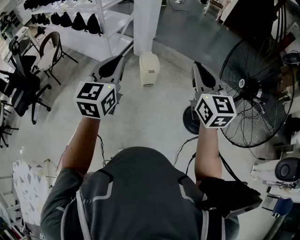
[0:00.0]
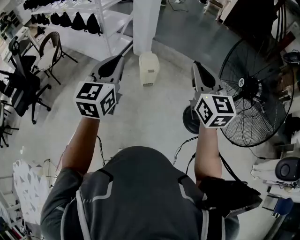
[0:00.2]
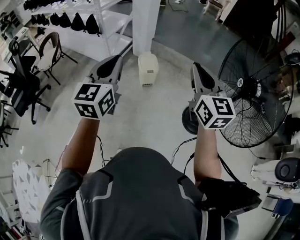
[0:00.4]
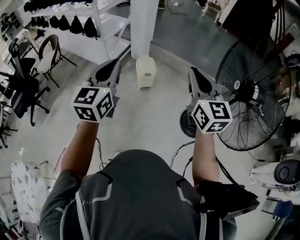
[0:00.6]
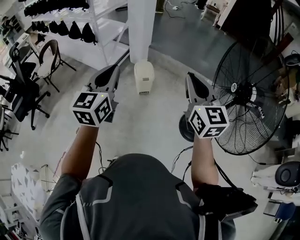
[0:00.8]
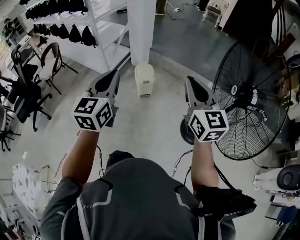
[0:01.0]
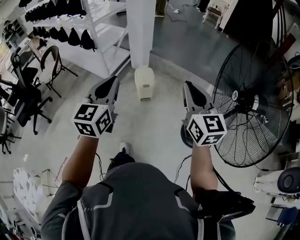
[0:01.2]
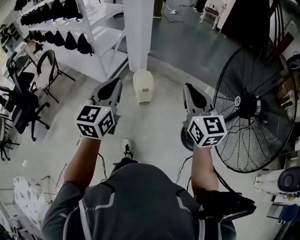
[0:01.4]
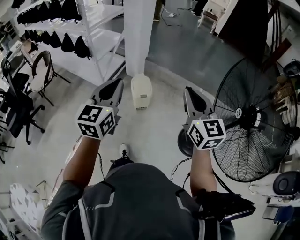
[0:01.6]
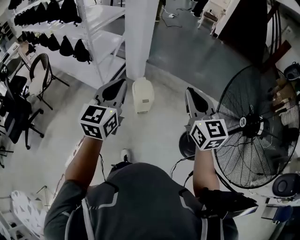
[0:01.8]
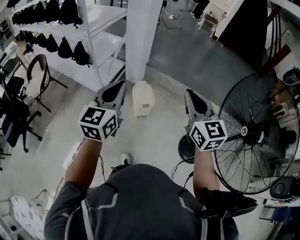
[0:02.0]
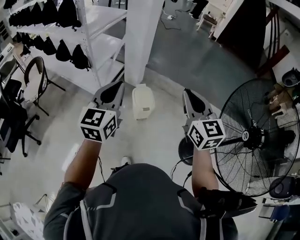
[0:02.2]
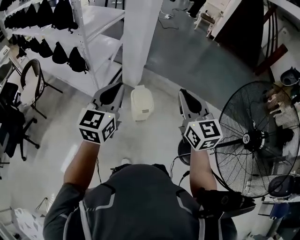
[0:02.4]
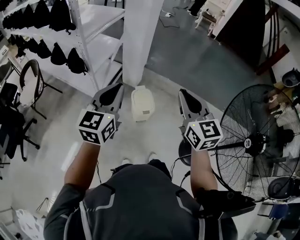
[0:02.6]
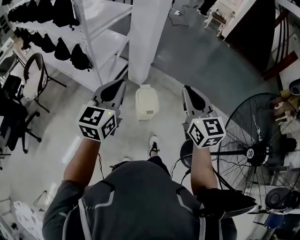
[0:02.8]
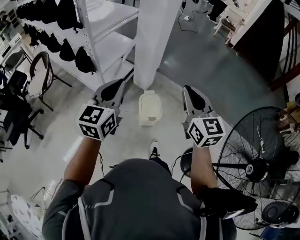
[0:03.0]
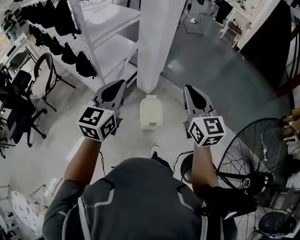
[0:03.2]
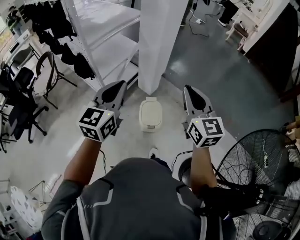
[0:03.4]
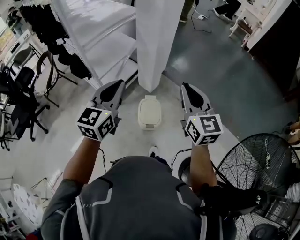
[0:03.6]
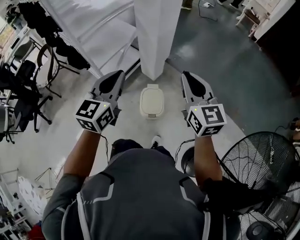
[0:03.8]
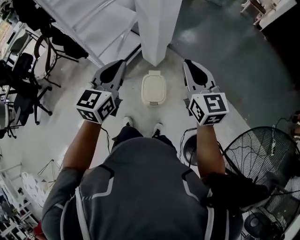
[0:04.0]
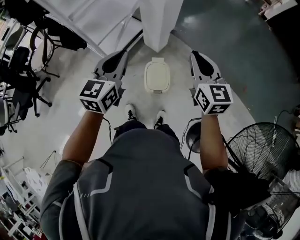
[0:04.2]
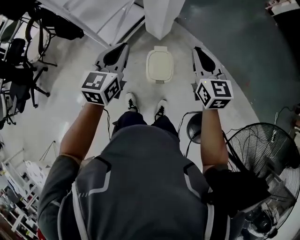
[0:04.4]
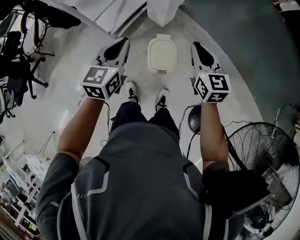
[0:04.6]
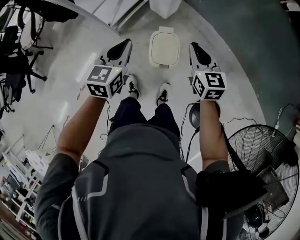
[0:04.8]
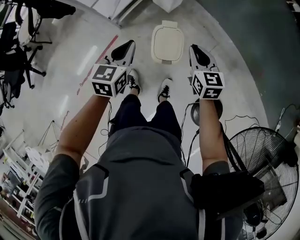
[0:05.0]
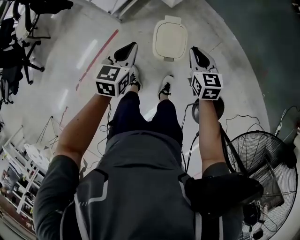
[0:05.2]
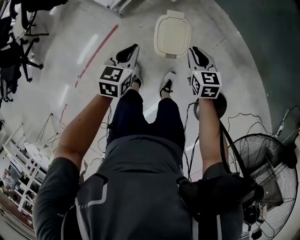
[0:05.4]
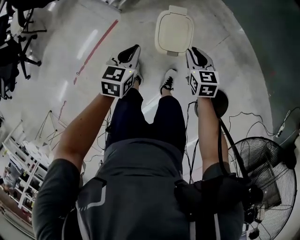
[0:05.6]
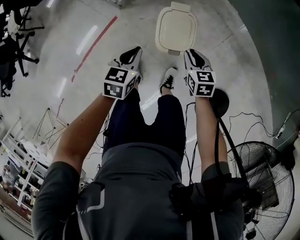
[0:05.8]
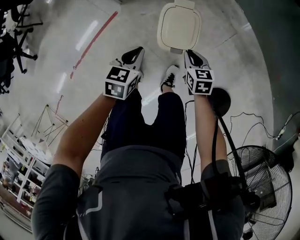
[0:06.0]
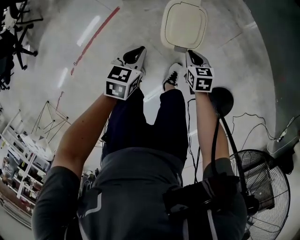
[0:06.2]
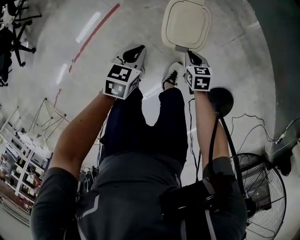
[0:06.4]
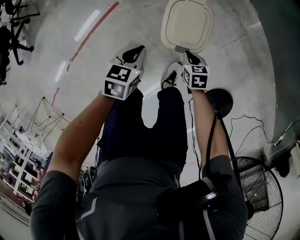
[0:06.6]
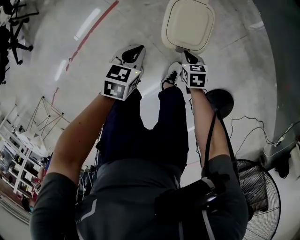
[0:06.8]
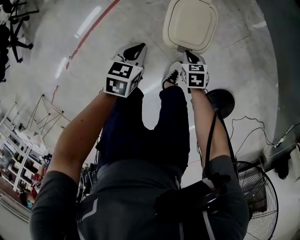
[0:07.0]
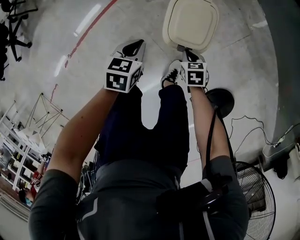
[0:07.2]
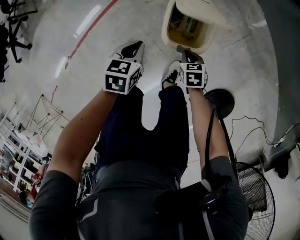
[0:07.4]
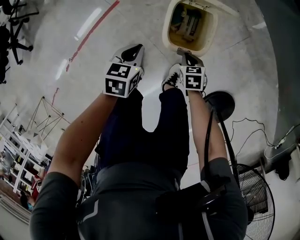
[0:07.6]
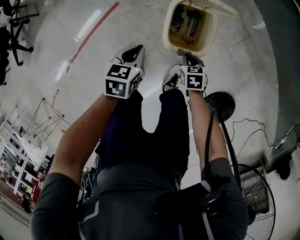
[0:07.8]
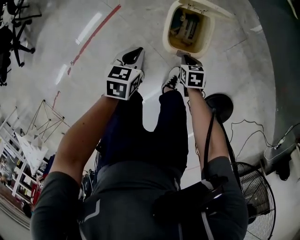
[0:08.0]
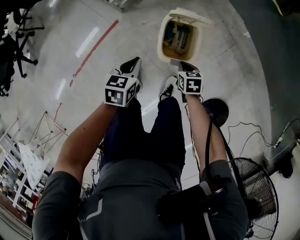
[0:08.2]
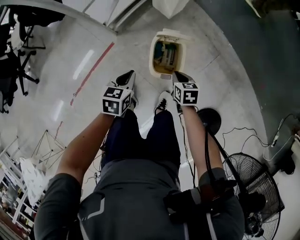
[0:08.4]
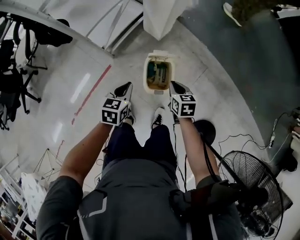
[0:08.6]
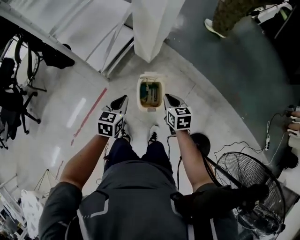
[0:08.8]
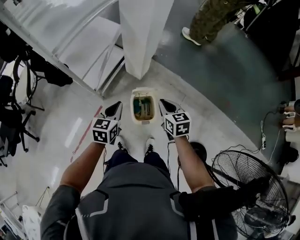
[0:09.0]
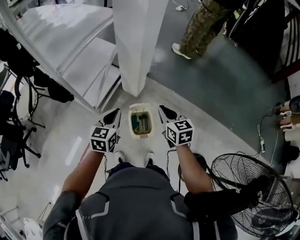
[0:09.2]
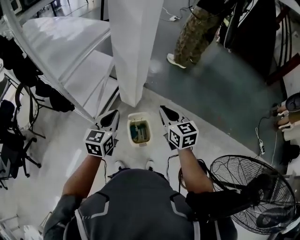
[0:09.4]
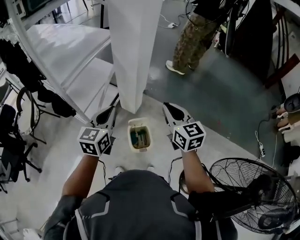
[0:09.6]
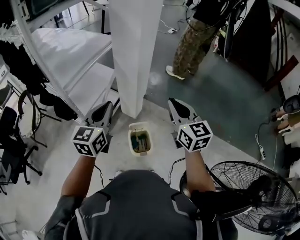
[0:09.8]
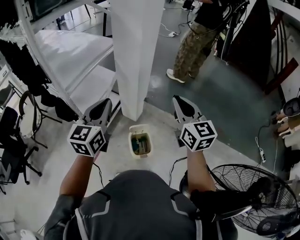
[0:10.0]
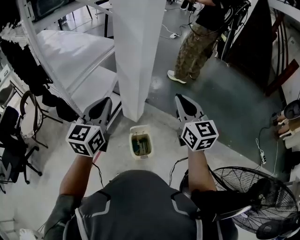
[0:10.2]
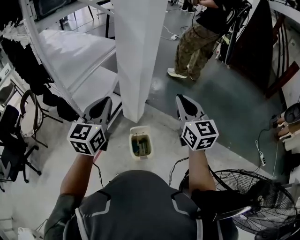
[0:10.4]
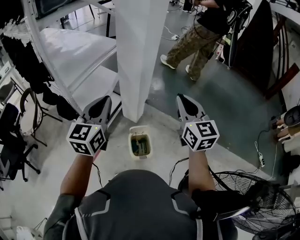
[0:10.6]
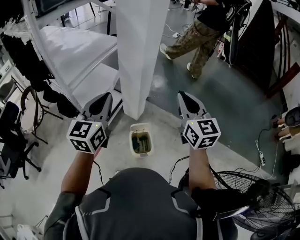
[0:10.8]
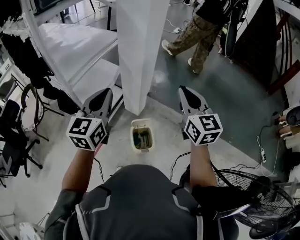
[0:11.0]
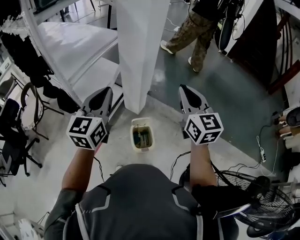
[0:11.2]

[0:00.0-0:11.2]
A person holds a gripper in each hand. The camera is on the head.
0:00.0 to 0:01.6: Both grippers move forward, roughly 15 cm.
0:01.6 to 0:03.2: The grippers both shift forward by some 35 cm.
0:03.2 to 0:04.8: Both grippers move downward and forward, about 35 cm. The right gripper turns by about 30 degrees; the left gripper turns by approximately 30 degrees.
0:04.8 to 0:06.4: Both grippers travel together downward, roughly 35 cm. The left gripper turns by approximately 30 degrees; the right gripper tilts its fingers approximately 30 degrees downward.
0:06.4 to 0:08.0: The right gripper shifts roughly 5 cm downward.
0:08.0 to 0:09.6: Both grippers travel together upward, some 60 cm. The left gripper tilts its fingers some 40 degrees upward; the right gripper tips its fingers upward by some 50 degrees.
0:09.6 to 0:11.2: Both grippers travel together upward, approximately 10 cm.

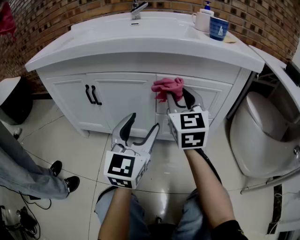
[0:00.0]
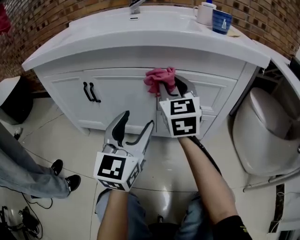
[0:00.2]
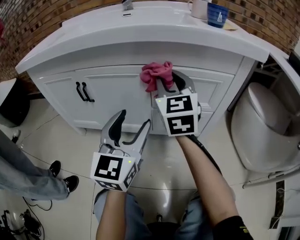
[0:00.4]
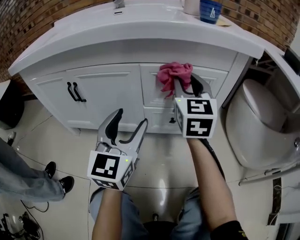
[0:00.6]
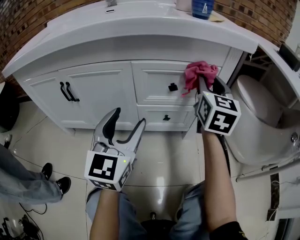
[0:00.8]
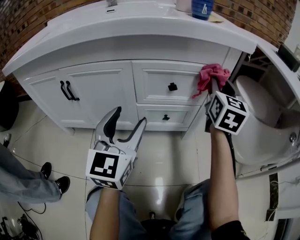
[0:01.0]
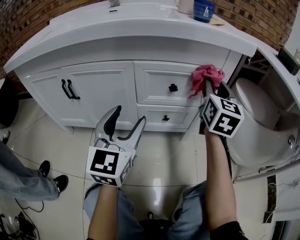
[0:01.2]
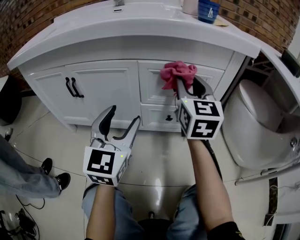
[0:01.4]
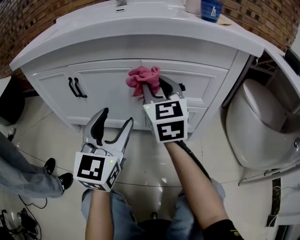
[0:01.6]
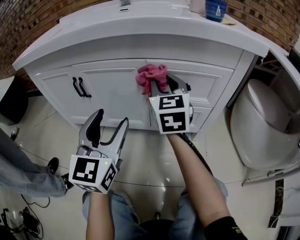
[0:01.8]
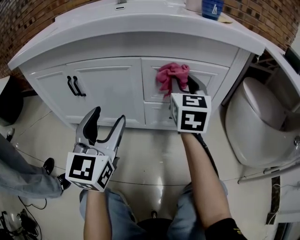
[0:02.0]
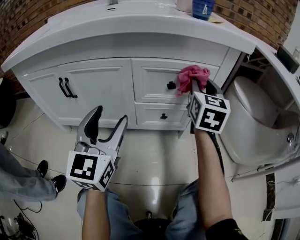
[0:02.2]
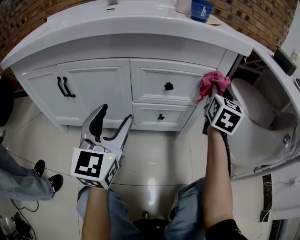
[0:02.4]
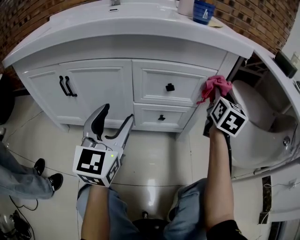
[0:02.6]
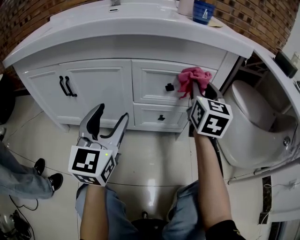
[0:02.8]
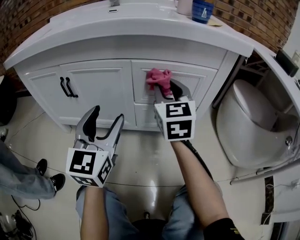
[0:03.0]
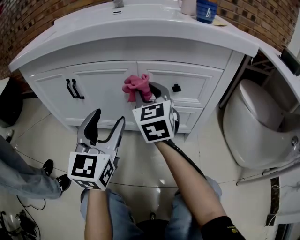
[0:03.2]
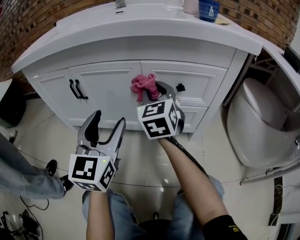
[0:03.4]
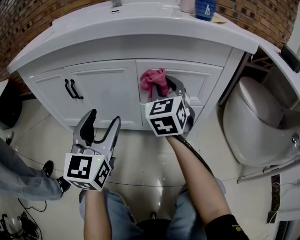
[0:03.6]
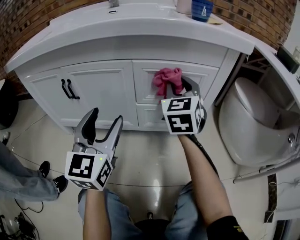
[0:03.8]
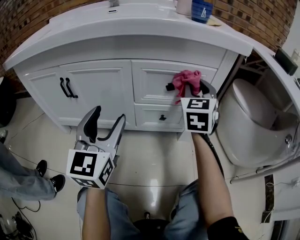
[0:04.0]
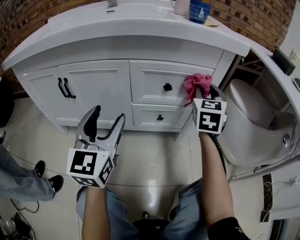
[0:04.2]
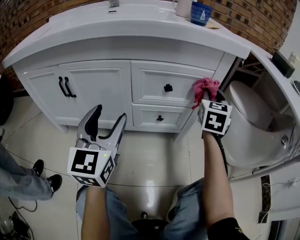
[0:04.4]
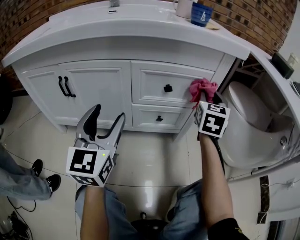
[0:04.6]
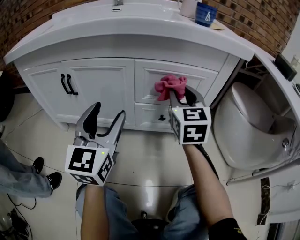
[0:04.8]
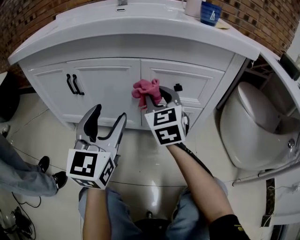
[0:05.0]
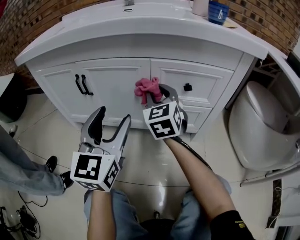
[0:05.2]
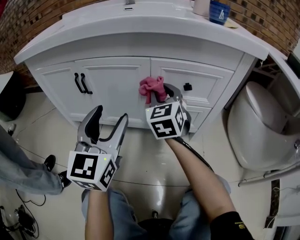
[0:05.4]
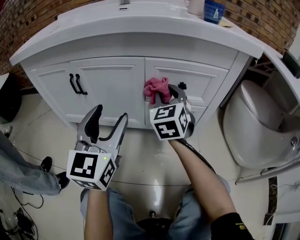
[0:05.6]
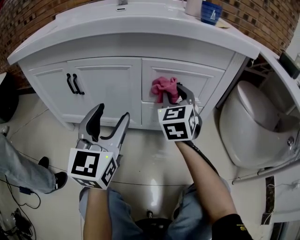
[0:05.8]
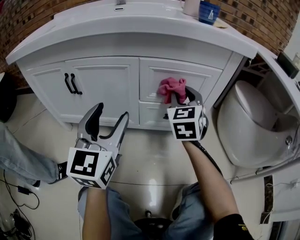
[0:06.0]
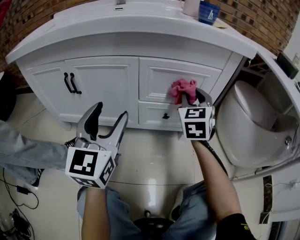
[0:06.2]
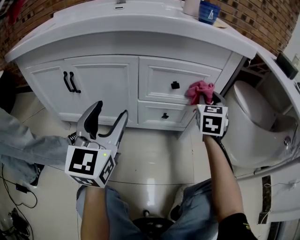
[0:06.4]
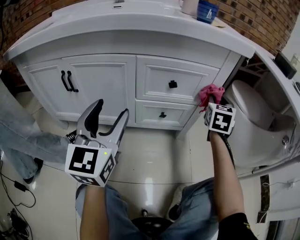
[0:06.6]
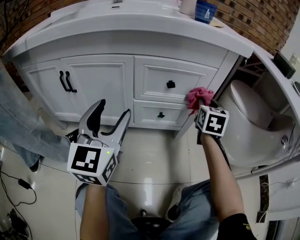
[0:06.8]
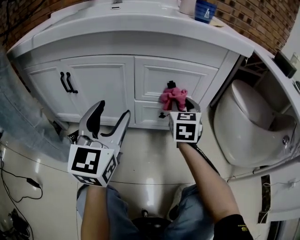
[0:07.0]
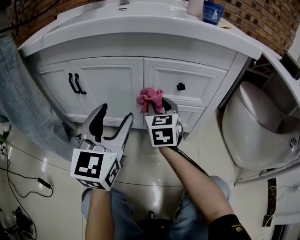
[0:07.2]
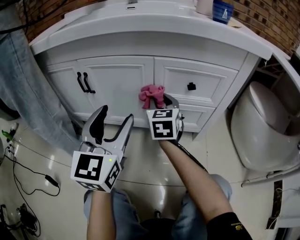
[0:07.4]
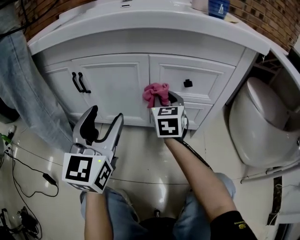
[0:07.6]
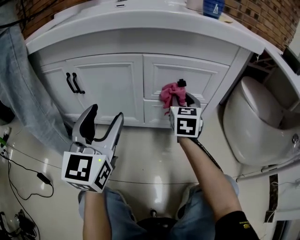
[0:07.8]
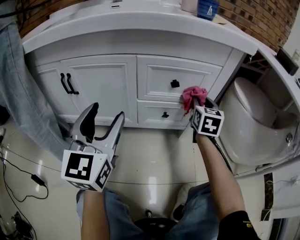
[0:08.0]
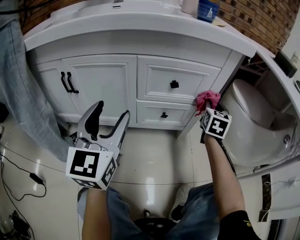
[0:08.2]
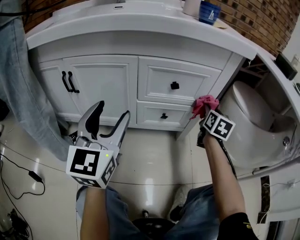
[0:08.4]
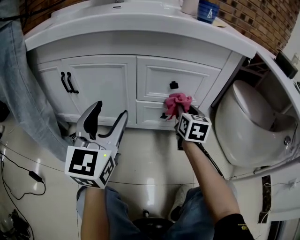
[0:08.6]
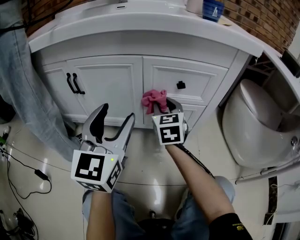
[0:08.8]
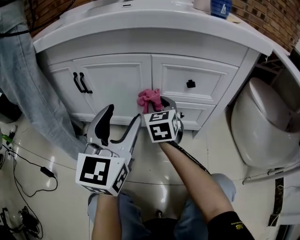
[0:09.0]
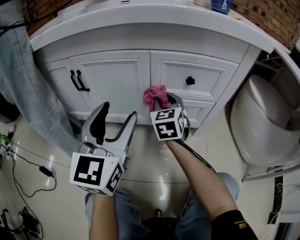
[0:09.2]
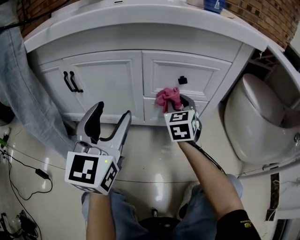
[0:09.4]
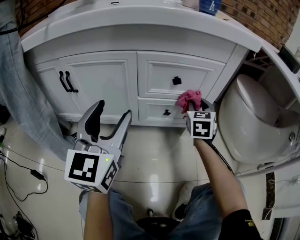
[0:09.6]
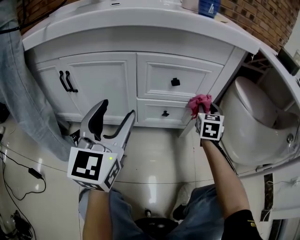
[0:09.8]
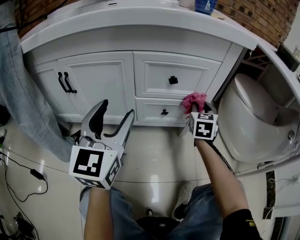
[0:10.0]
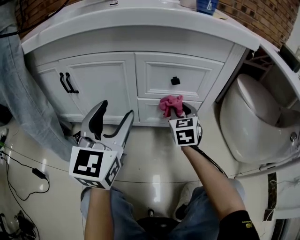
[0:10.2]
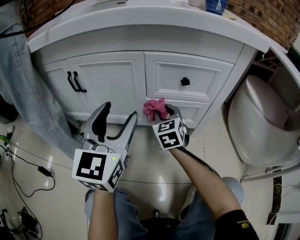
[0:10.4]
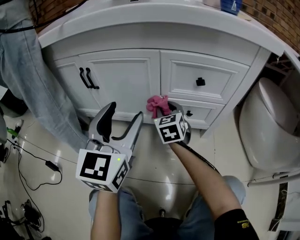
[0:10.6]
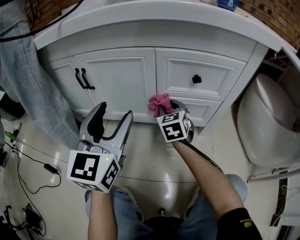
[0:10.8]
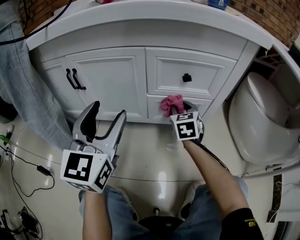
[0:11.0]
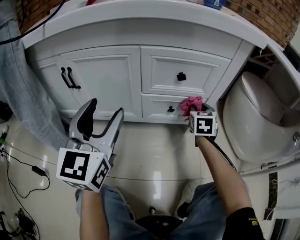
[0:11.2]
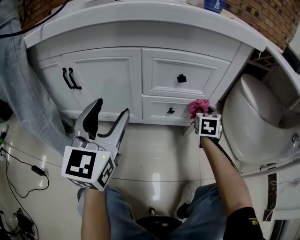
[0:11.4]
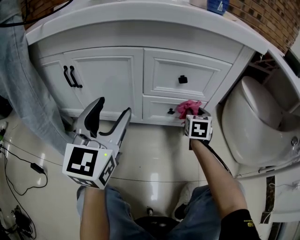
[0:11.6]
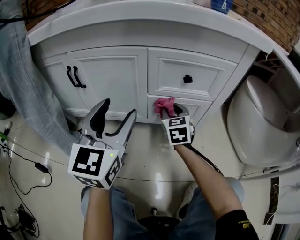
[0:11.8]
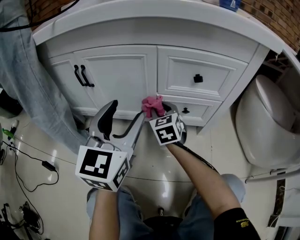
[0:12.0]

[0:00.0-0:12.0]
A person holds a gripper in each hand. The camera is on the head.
0:00.0 to 0:01.6: The right gripper goes to the right and returns, about 25 cm each way.
0:01.6 to 0:03.0: The right gripper goes to the right and returns, roughly 30 cm each way.
0:03.0 to 0:04.4: The right gripper moves to the right, some 20 cm, and turns by about 30 degrees.
0:04.4 to 0:06.0: The right gripper moves to the left, about 15 cm, and turns by roughly 20 degrees.
0:06.0 to 0:07.6: The right gripper moves downward, about 5 cm, and travels to the right and back again, roughly 20 cm each way.
0:07.6 to 0:09.0: The right gripper travels to the right and back again, roughly 25 cm each way.
0:09.0 to 0:10.4: The right gripper heads downward, covering about 5 cm, and goes to the right and returns, about 30 cm each way.
0:10.4 to 0:12.0: The right gripper moves left and right over some 30 cm, changing direction 2 times.

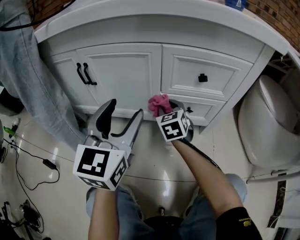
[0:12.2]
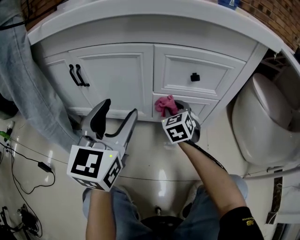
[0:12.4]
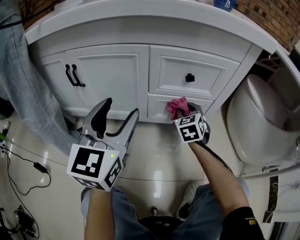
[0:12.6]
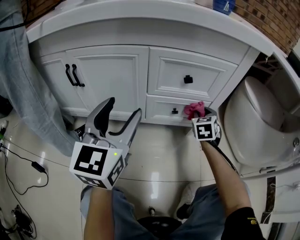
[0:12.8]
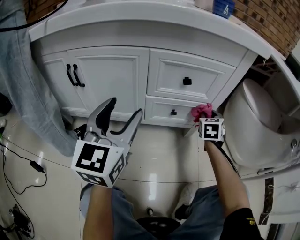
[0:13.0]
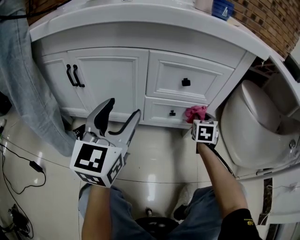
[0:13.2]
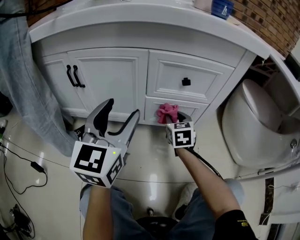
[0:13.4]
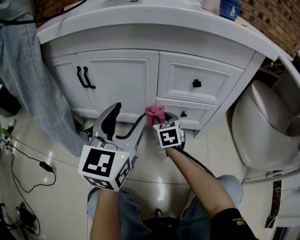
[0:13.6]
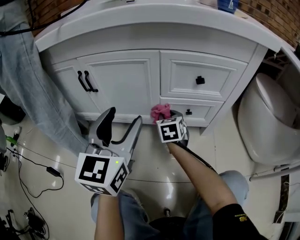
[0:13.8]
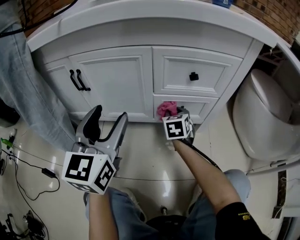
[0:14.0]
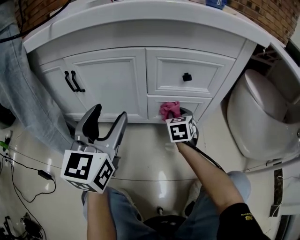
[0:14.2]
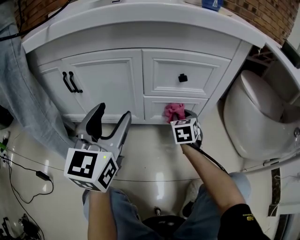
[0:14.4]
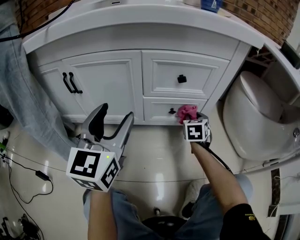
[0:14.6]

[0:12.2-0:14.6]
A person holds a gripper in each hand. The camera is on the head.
0:12.2 to 0:13.4: The right gripper moves to the right, some 10 cm.
0:13.4 to 0:14.6: The right gripper heads to the right, covering some 10 cm.
